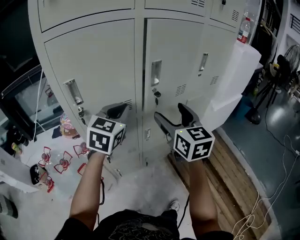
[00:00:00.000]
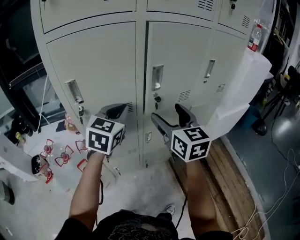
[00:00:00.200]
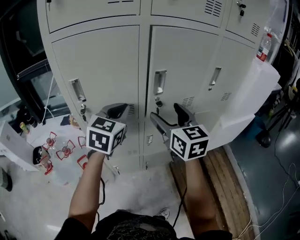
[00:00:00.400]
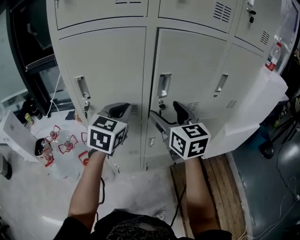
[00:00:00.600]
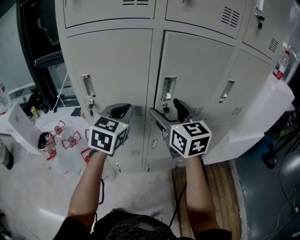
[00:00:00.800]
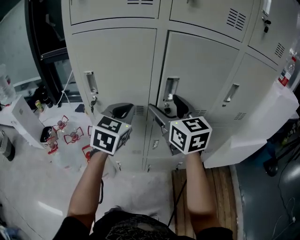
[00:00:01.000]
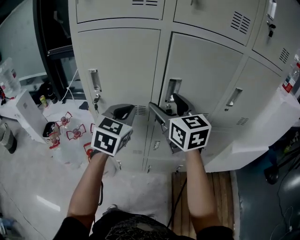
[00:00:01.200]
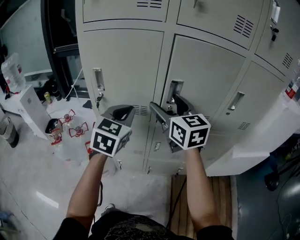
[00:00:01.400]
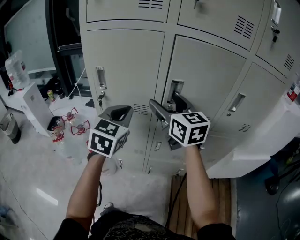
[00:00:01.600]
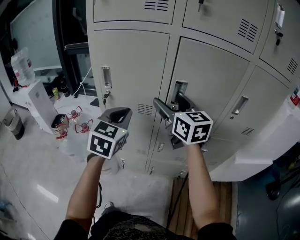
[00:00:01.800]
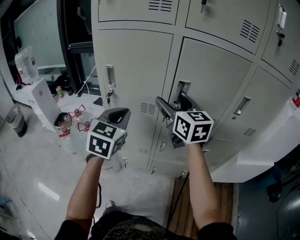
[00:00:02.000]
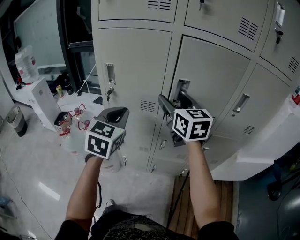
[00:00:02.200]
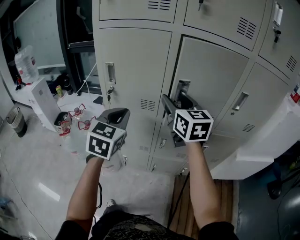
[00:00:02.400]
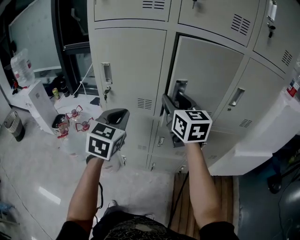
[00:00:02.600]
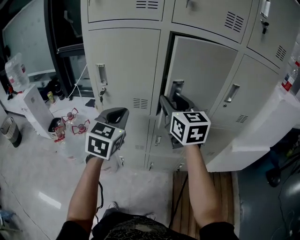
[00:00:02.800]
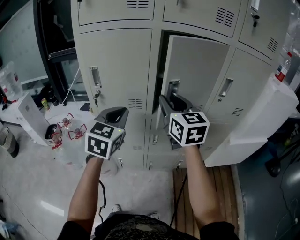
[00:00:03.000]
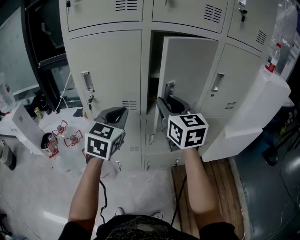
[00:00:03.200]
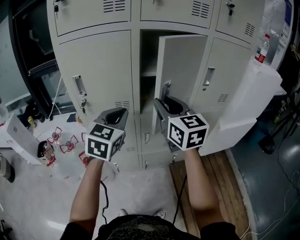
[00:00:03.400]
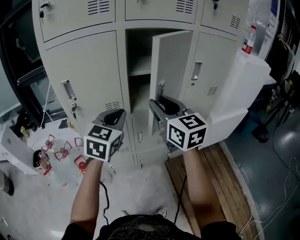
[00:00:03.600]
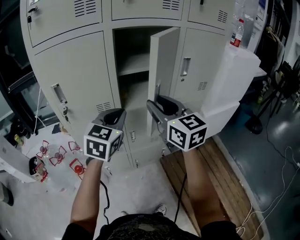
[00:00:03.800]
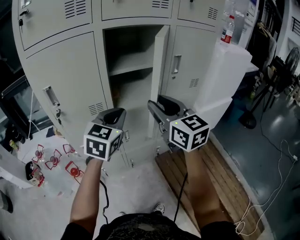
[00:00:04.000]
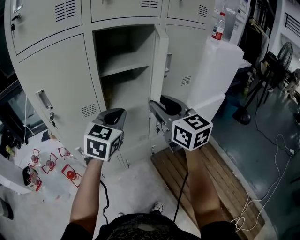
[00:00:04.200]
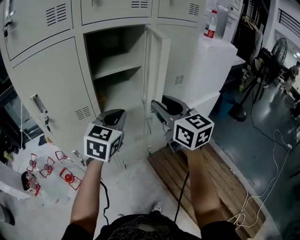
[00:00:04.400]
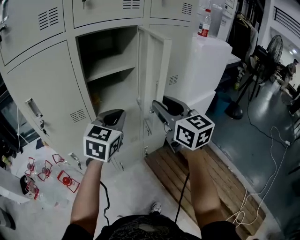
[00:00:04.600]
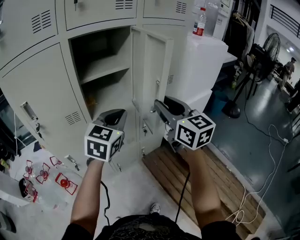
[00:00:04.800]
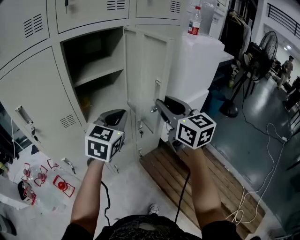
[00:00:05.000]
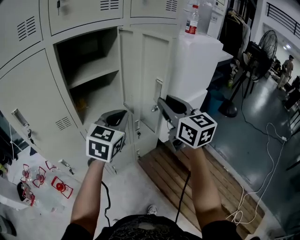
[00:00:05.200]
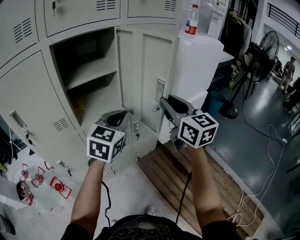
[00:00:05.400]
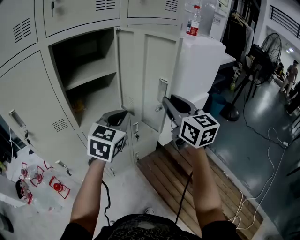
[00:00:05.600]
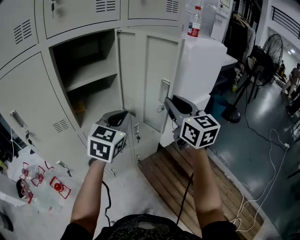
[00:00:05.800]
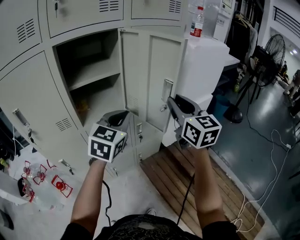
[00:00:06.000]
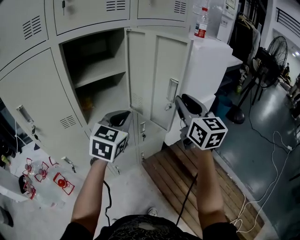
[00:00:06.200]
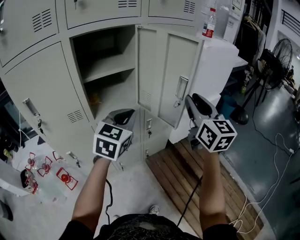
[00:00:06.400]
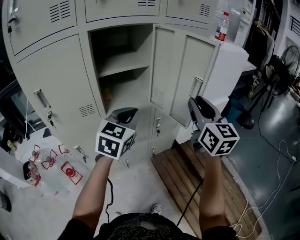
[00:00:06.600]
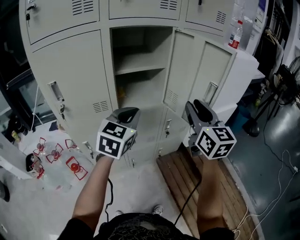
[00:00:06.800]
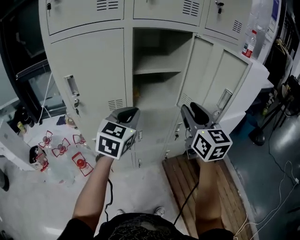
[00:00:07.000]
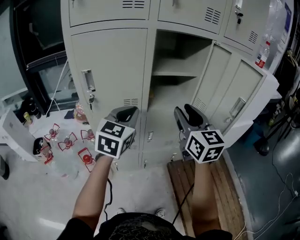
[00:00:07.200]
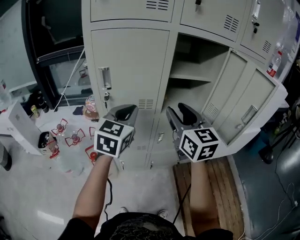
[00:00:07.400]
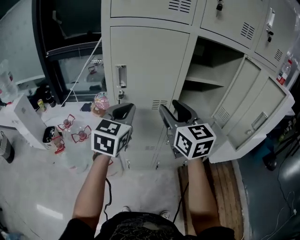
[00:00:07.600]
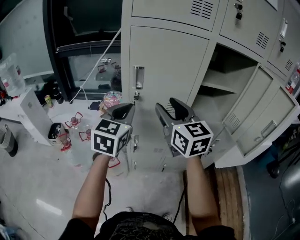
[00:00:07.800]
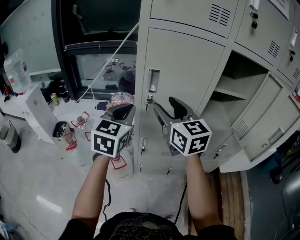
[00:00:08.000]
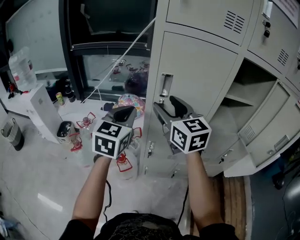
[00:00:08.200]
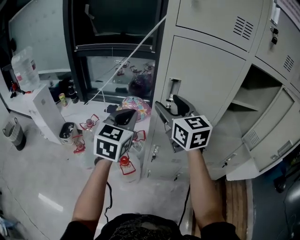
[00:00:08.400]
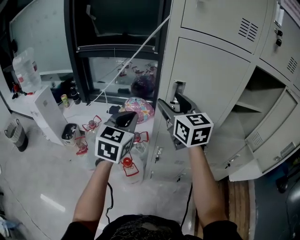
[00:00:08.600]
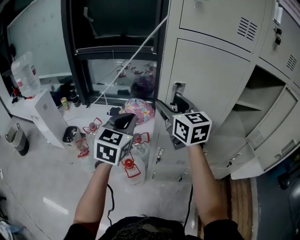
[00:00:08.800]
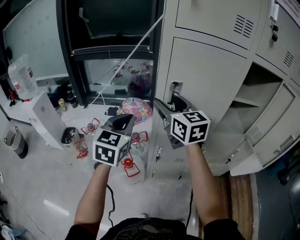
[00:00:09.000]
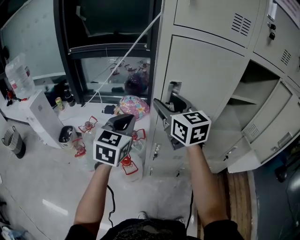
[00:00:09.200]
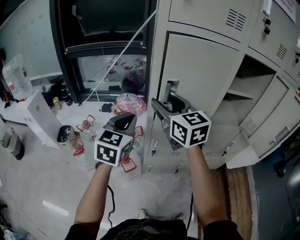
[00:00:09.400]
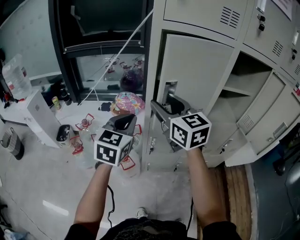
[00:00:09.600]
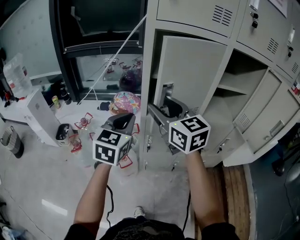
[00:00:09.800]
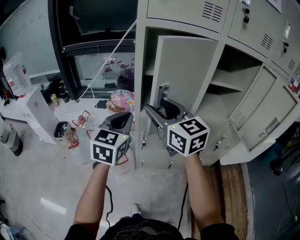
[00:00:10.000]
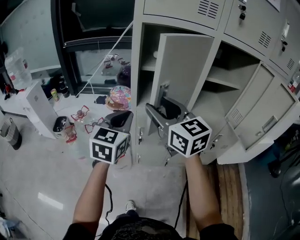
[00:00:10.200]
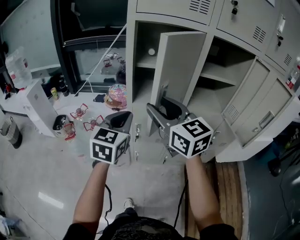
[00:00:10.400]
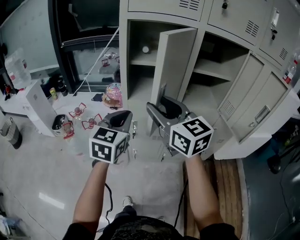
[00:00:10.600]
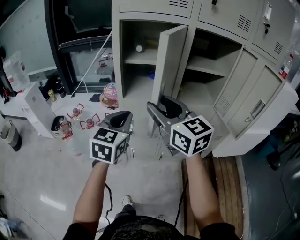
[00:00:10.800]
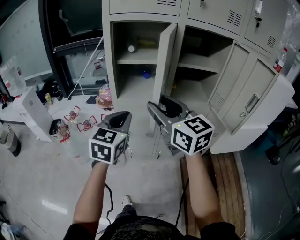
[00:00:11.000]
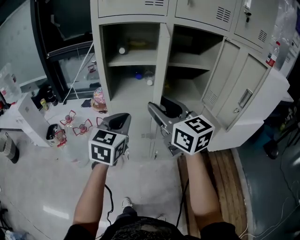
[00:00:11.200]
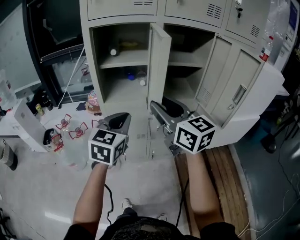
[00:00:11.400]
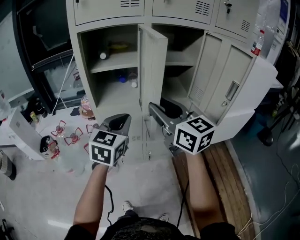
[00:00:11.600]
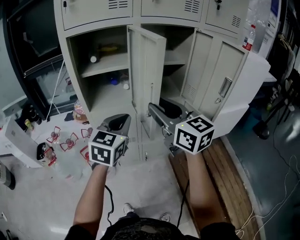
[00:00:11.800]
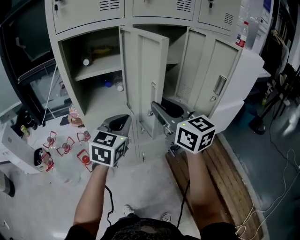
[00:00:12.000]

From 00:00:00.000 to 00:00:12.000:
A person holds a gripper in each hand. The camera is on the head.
From 00:00:00.000 to 00:00:01.600: The left gripper rotates approximately 30 degrees. The right gripper changes place by roughly 10 cm, and swivels about 40 degrees.
From 00:00:01.600 to 00:00:03.000: The right gripper ends up approximately 5 cm from where it was, and closes.
From 00:00:03.000 to 00:00:04.400: The left gripper heads to the right, covering some 20 cm, and rotates approximately 30 degrees. The right gripper moves to the right and backward, some 20 cm.
From 00:00:04.400 to 00:00:06.000: Both grippers move to the right and forward, about 15 cm.
From 00:00:06.000 to 00:00:07.600: The right gripper shifts by approximately 40 cm, and turns by some 30 degrees. Meanwhile the left gripper changes place by roughly 40 cm, and rotates some 30 degrees.
From 00:00:07.600 to 00:00:09.000: The left gripper heads to the left, covering about 20 cm. The right gripper is displaced to the left and forward by about 25 cm.
From 00:00:09.000 to 00:00:10.400: The grippers both shift backward and to the right by about 20 cm.
From 00:00:10.400 to 00:00:12.000: Both grippers move to the right, some 20 cm. The left gripper rotates some 20 degrees; the right gripper turns by about 20 degrees.

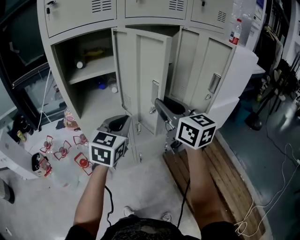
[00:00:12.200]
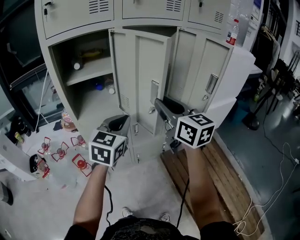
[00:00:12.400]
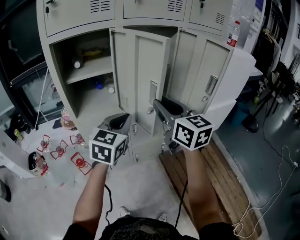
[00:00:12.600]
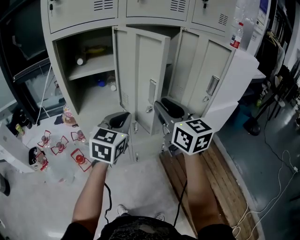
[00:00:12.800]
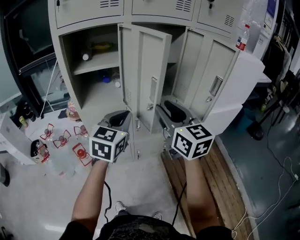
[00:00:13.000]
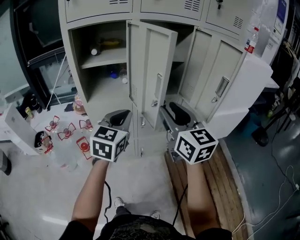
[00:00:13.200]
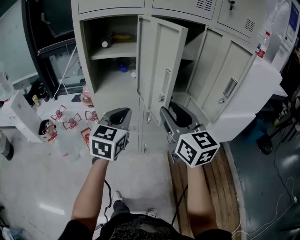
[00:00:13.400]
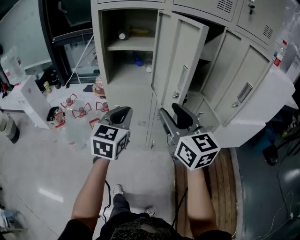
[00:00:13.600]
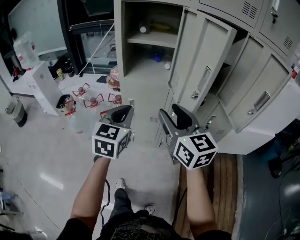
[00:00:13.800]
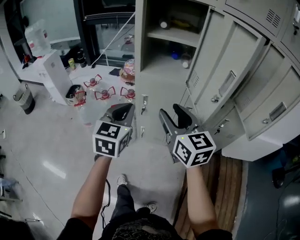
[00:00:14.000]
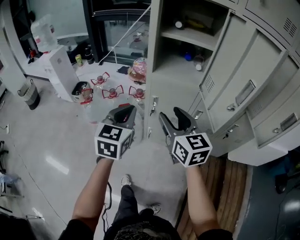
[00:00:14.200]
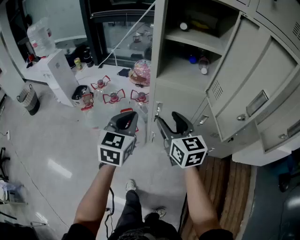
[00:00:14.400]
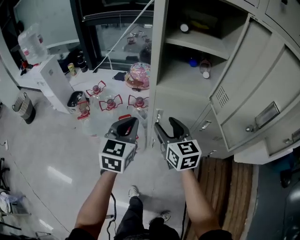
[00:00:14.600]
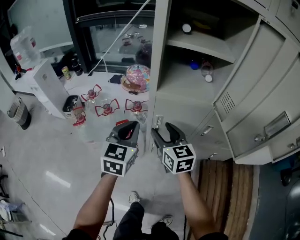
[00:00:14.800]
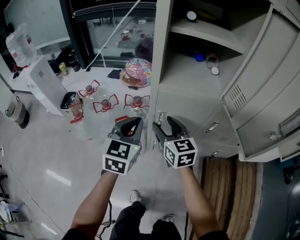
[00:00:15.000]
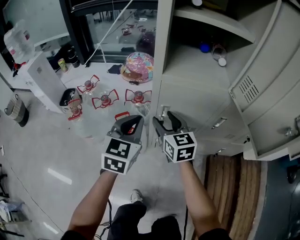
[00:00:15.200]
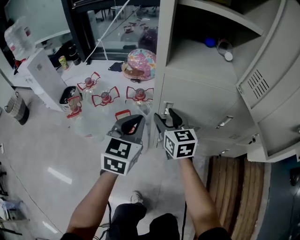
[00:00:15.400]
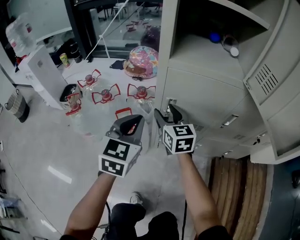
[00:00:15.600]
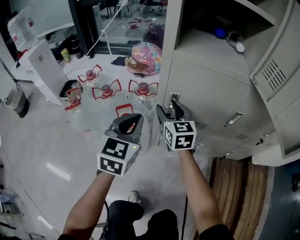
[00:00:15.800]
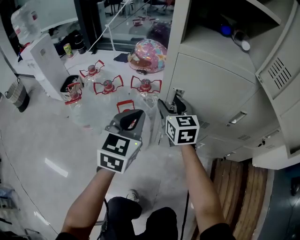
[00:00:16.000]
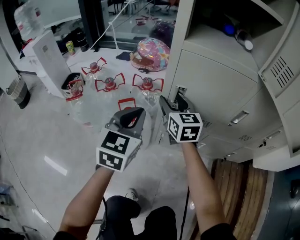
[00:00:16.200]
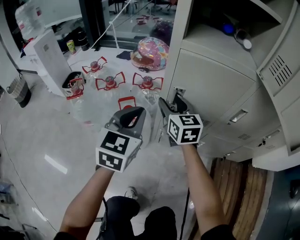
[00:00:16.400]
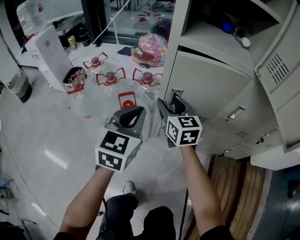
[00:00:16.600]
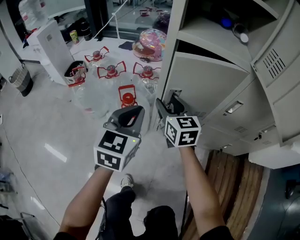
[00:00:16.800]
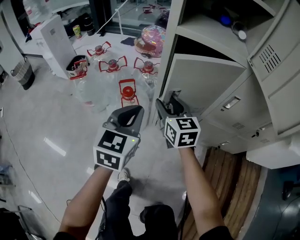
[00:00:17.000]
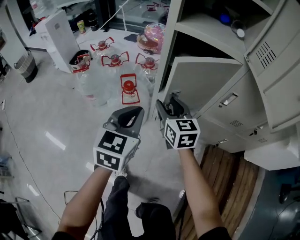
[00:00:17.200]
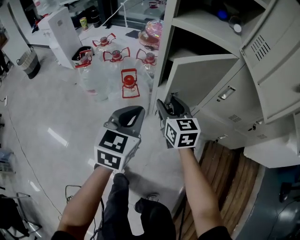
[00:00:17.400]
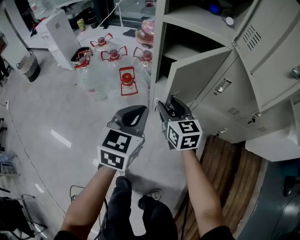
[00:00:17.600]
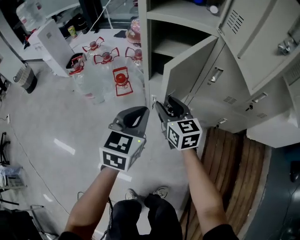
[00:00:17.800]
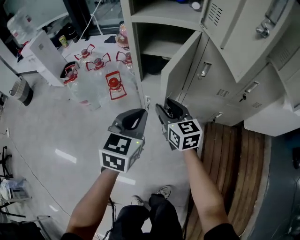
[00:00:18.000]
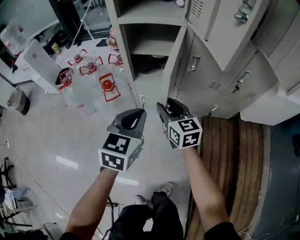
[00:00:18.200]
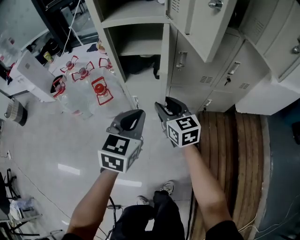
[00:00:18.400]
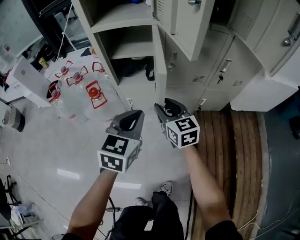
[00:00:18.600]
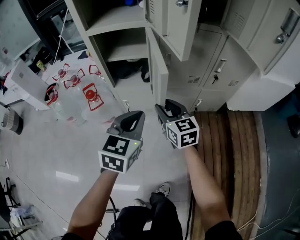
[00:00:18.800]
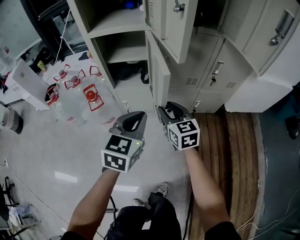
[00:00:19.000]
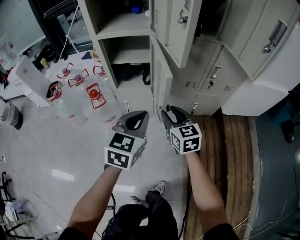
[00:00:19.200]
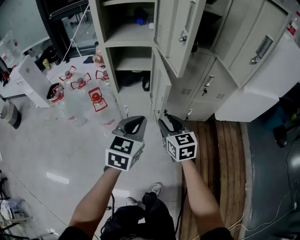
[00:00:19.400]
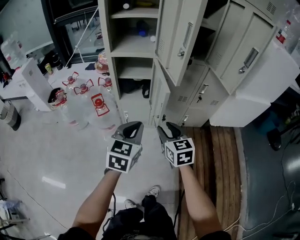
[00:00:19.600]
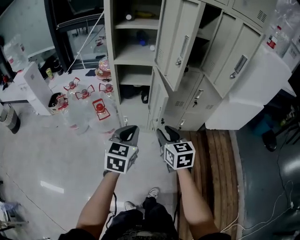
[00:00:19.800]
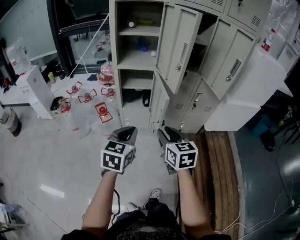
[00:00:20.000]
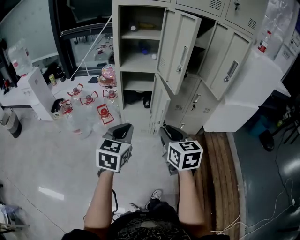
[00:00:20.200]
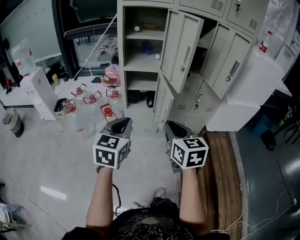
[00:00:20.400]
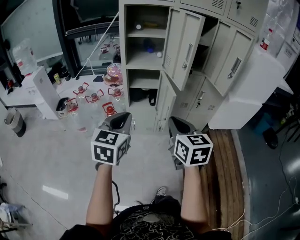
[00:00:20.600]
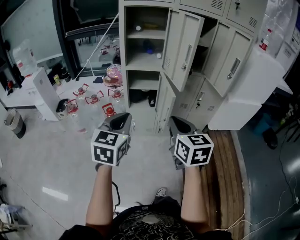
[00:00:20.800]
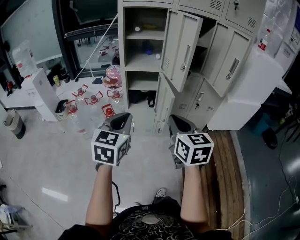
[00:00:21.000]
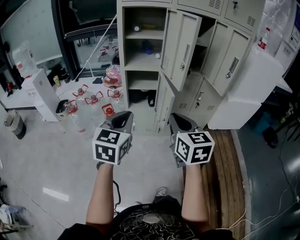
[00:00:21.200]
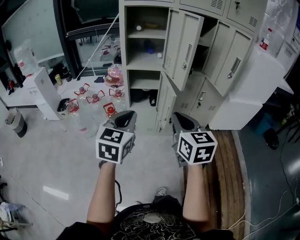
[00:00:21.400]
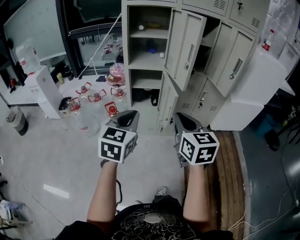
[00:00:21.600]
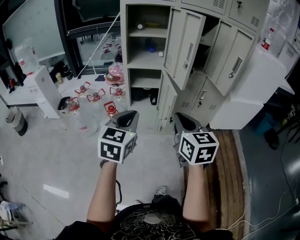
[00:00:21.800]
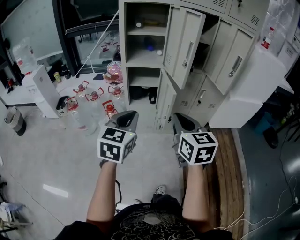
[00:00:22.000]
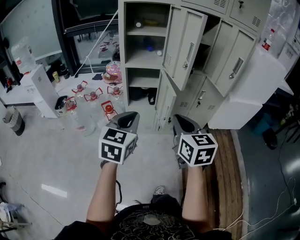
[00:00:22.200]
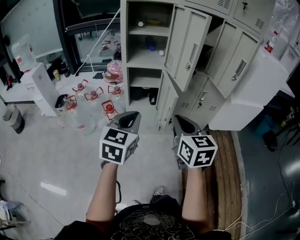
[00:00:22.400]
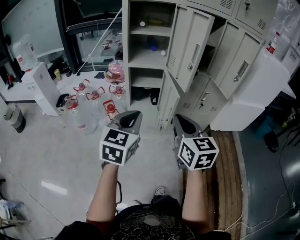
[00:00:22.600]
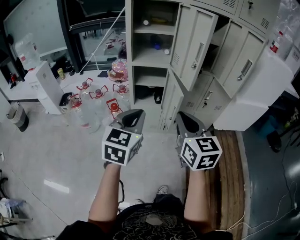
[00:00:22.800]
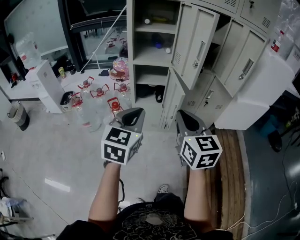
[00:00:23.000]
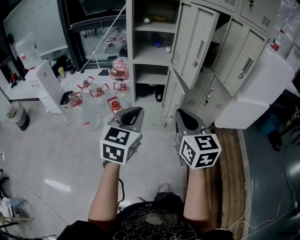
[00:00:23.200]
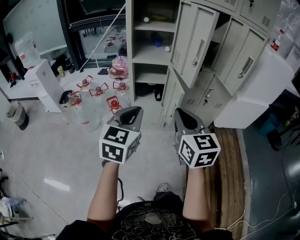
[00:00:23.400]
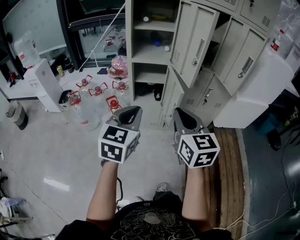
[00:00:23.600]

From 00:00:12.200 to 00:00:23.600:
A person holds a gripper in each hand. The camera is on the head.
From 00:00:12.200 to 00:00:13.600: The right gripper goes approximately 5 cm backward, while the left gripper is displaced to the left and backward by some 10 cm, and turns by approximately 20 degrees.
From 00:00:13.600 to 00:00:15.000: The left gripper shifts some 30 cm to the left, downward and forward. The right gripper heads downward, forward and to the left, covering some 40 cm.
From 00:00:15.000 to 00:00:16.400: The right gripper is displaced downward and forward by approximately 15 cm. Meanwhile the left gripper moves downward, roughly 10 cm.
From 00:00:16.400 to 00:00:17.800: The left gripper heads backward and to the right, covering some 20 cm. Meanwhile the right gripper heads backward, covering roughly 20 cm.
From 00:00:17.800 to 00:00:19.400: Both grippers move to the right, backward and upward, about 20 cm.
From 00:00:19.400 to 00:00:20.800: The right gripper travels upward and backward by some 30 cm, and closes up; the left gripper moves upward, to the left and backward, approximately 25 cm.
From 00:00:20.800 to 00:00:23.600: The grippers stay close to where they were, moving slightly.
